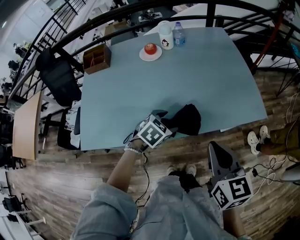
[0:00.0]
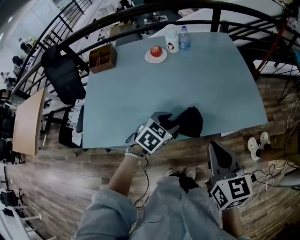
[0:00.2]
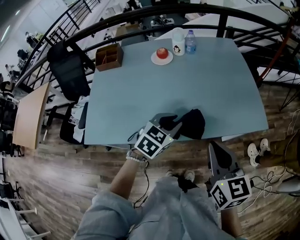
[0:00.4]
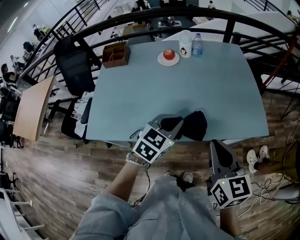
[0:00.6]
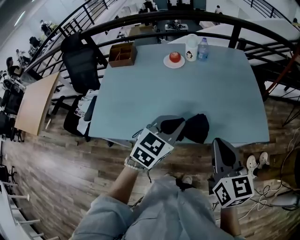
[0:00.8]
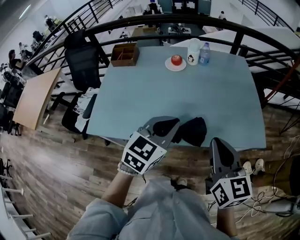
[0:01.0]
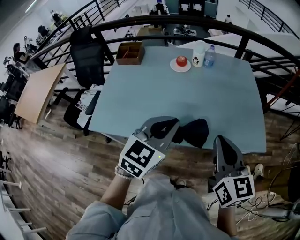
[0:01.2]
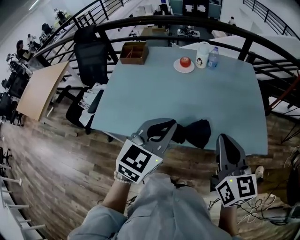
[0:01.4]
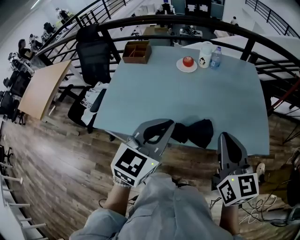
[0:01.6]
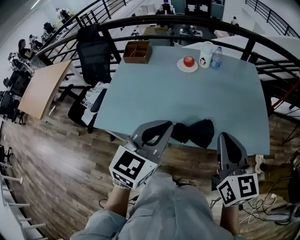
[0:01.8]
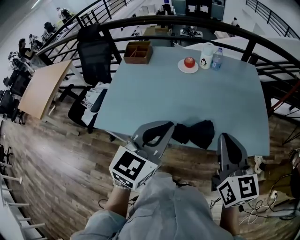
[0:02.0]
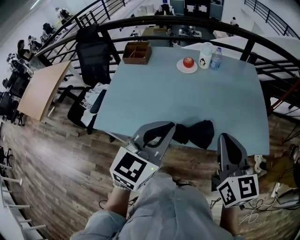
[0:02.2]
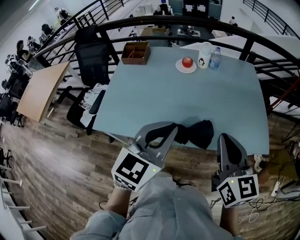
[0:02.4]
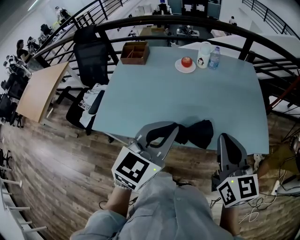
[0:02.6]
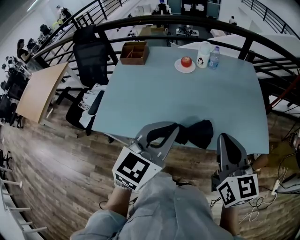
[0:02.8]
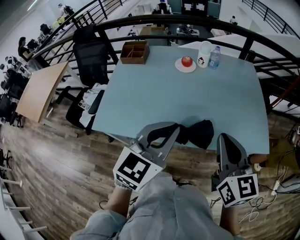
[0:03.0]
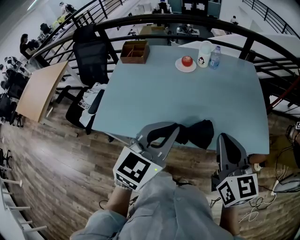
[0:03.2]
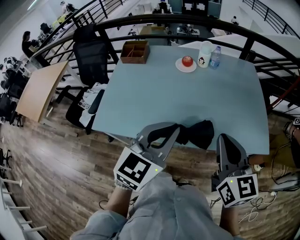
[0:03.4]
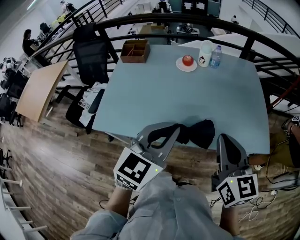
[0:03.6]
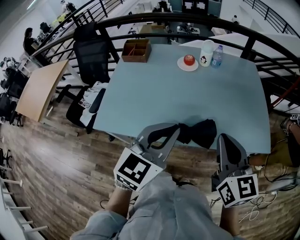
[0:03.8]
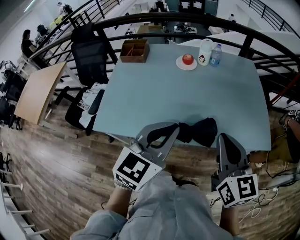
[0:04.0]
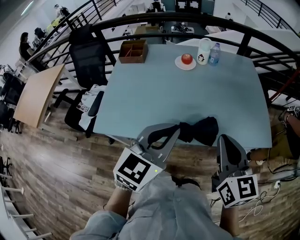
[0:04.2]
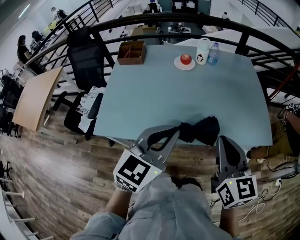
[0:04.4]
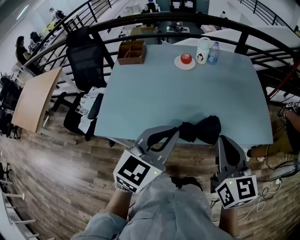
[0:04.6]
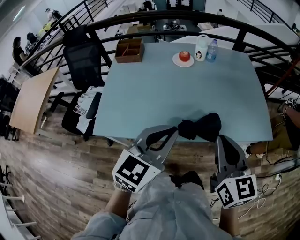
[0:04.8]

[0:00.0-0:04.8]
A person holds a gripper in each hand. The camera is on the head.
0:00.0 to 0:01.6: The left gripper travels upward by roughly 25 cm, angles its fingers upward, by about 40 degrees, and closes, while the right gripper shifts about 10 cm upward.
0:01.6 to 0:03.2: There are only small adjustments of the grippers.
0:03.2 to 0:04.8: Both grippers travel together to the left, some 5 cm.

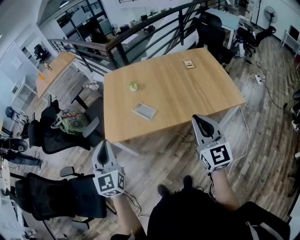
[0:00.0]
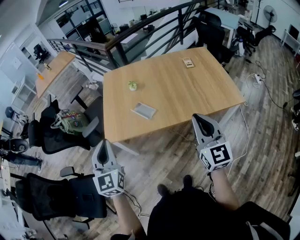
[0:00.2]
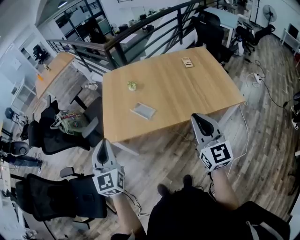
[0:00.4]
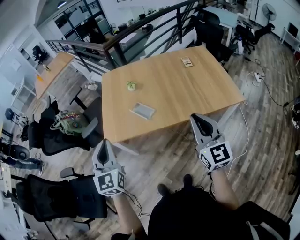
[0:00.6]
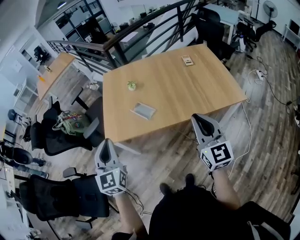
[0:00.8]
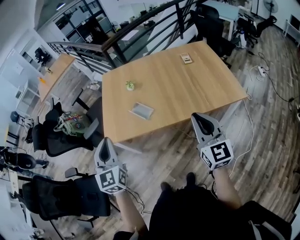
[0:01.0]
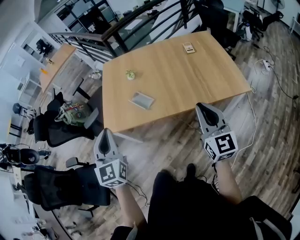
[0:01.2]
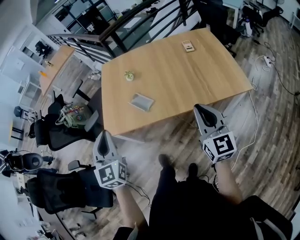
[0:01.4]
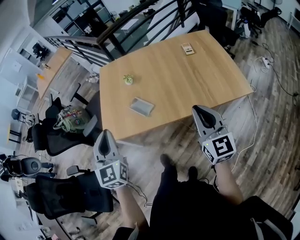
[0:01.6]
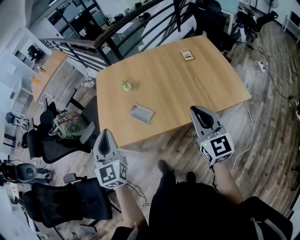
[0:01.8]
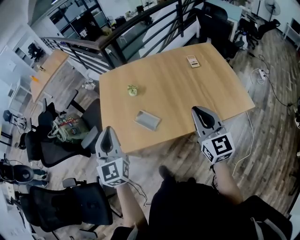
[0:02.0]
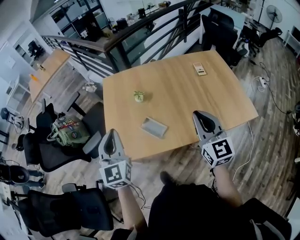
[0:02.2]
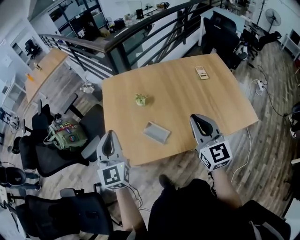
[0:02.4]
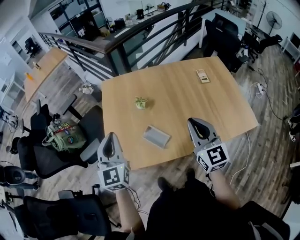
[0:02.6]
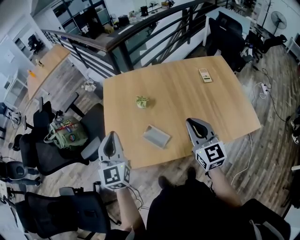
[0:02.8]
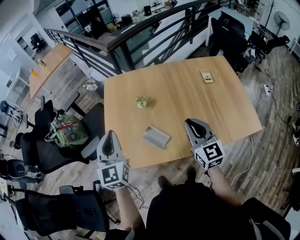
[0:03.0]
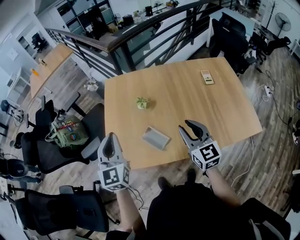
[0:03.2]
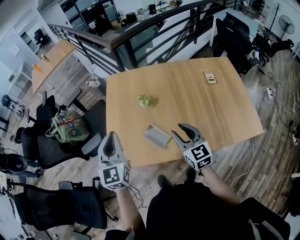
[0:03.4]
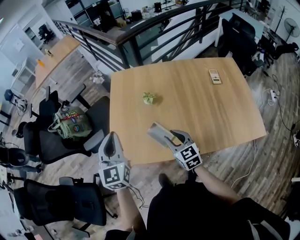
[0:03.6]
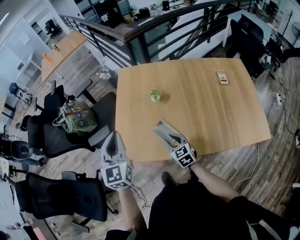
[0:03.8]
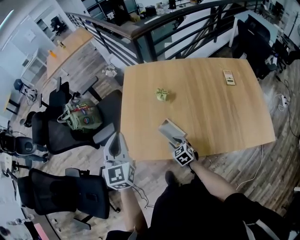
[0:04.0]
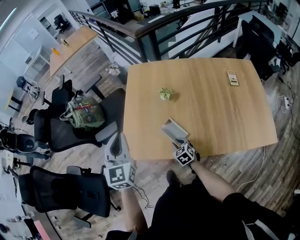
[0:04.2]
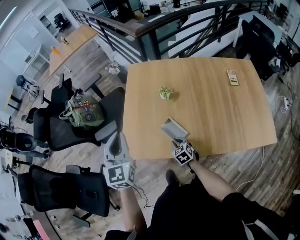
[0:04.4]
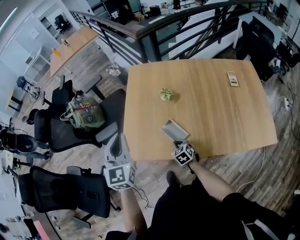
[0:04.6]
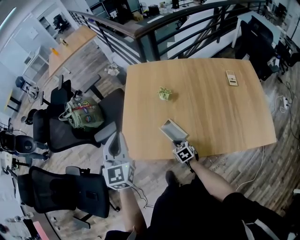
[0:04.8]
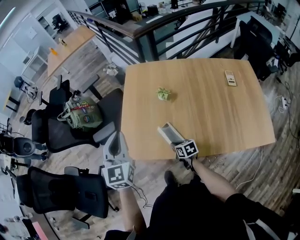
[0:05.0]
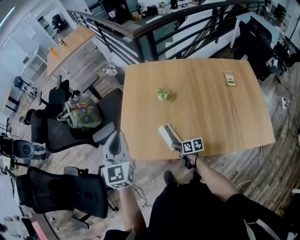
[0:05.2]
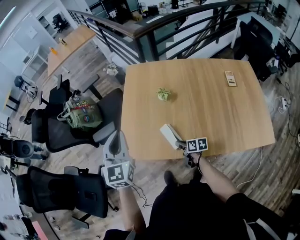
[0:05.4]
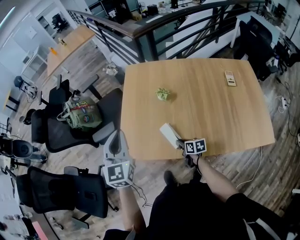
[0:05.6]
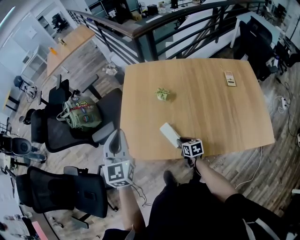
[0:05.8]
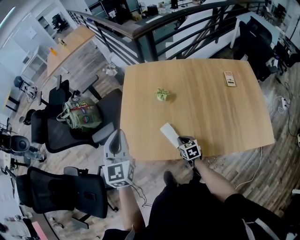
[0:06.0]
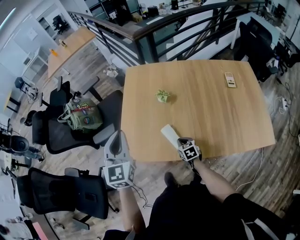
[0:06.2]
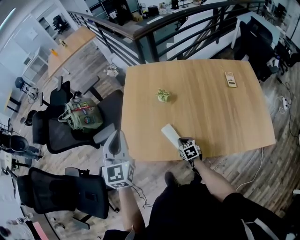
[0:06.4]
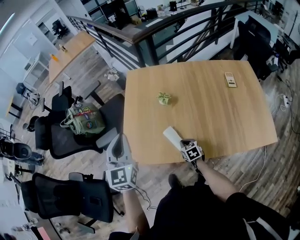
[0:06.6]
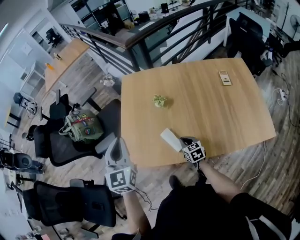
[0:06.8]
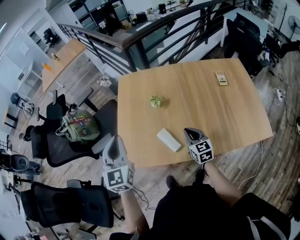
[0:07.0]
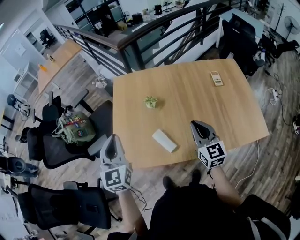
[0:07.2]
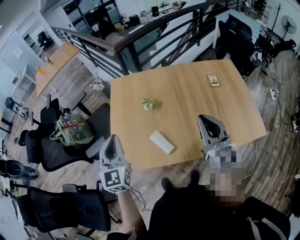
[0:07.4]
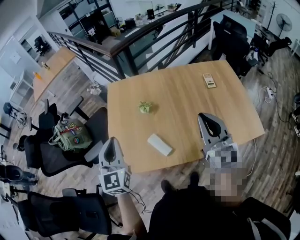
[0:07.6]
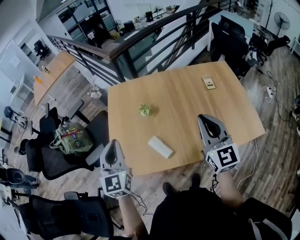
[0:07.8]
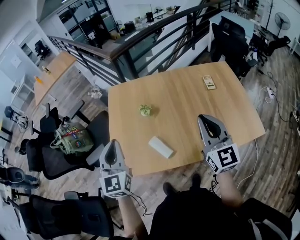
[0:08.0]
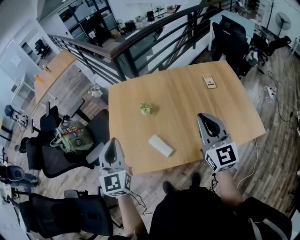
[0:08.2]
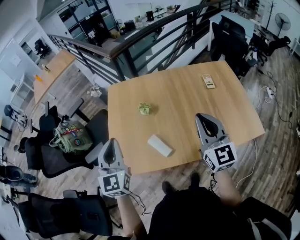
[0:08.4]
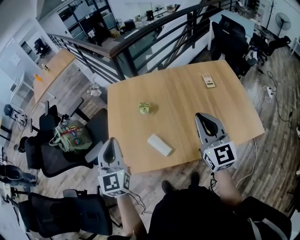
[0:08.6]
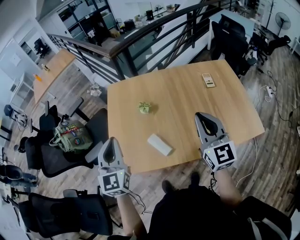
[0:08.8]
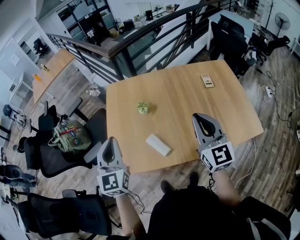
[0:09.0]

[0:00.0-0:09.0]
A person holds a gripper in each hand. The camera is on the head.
0:00.0 to 0:01.6: Both grippers move to the right and forward, roughly 10 cm.
0:01.6 to 0:03.0: The left gripper shifts approximately 20 cm forward; the right gripper is displaced forward and to the left by roughly 25 cm.
0:03.0 to 0:04.4: The left gripper travels to the left by roughly 5 cm. The right gripper shifts approximately 35 cm downward and to the left, tilts its fingers roughly 40 degrees downward, and opens, then closes once more.
0:04.4 to 0:06.0: The right gripper travels to the right by about 5 cm.
0:06.0 to 0:07.6: The right gripper heads upward, covering some 40 cm, and tips its fingers upward by about 40 degrees. Meanwhile the left gripper changes place by roughly 5 cm.
0:07.6 to 0:09.0: The grippers move only a little.

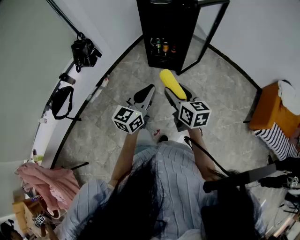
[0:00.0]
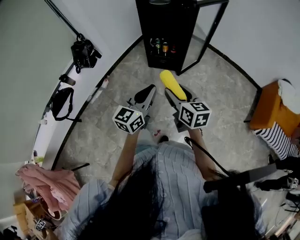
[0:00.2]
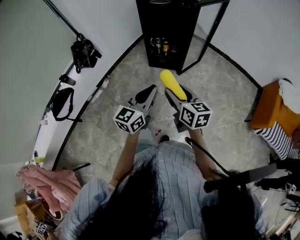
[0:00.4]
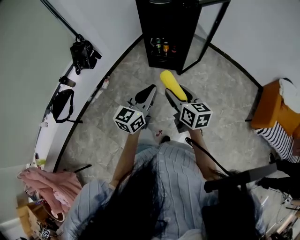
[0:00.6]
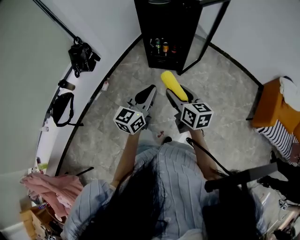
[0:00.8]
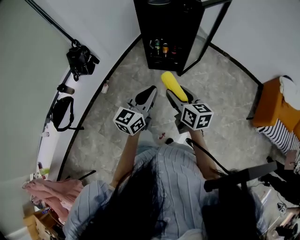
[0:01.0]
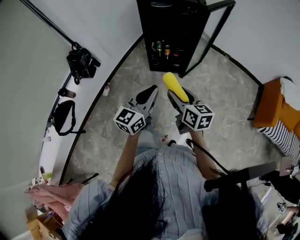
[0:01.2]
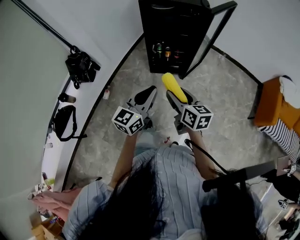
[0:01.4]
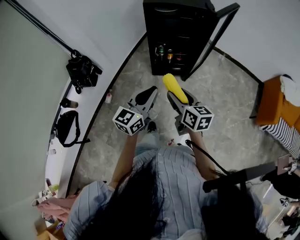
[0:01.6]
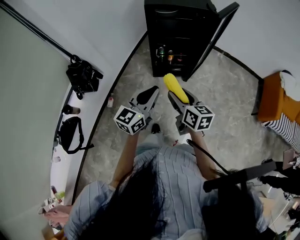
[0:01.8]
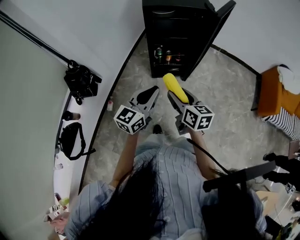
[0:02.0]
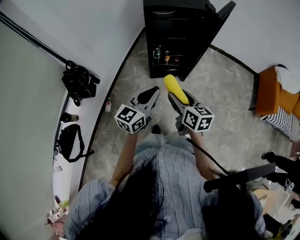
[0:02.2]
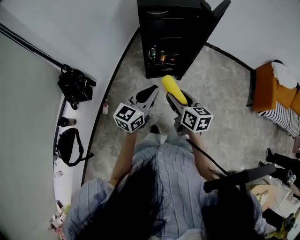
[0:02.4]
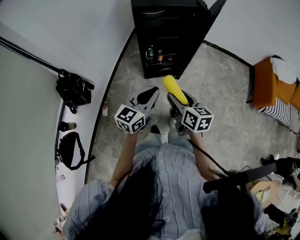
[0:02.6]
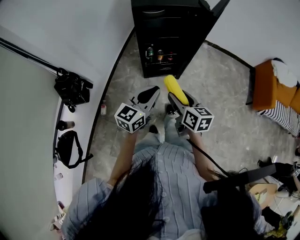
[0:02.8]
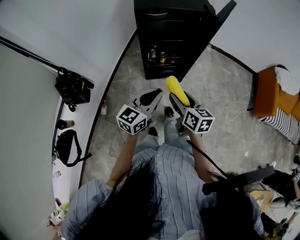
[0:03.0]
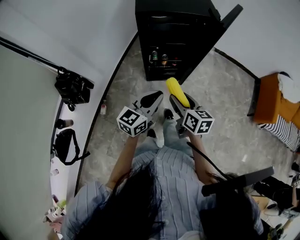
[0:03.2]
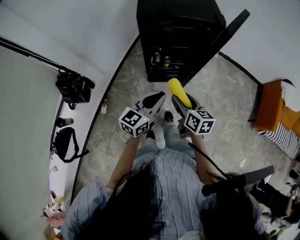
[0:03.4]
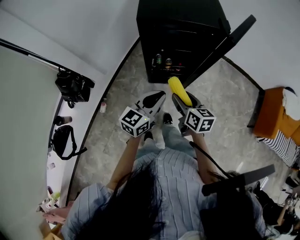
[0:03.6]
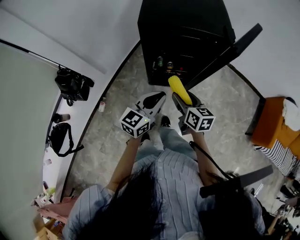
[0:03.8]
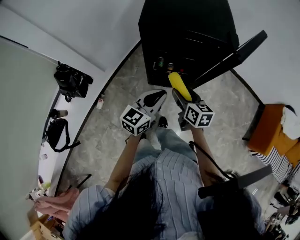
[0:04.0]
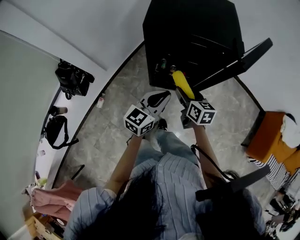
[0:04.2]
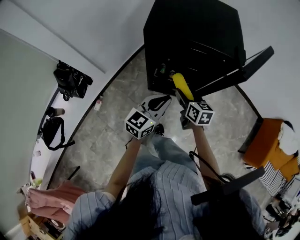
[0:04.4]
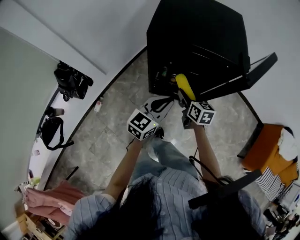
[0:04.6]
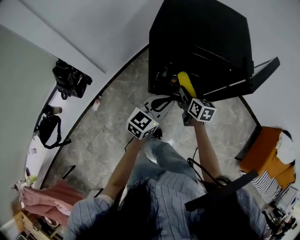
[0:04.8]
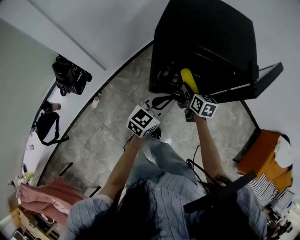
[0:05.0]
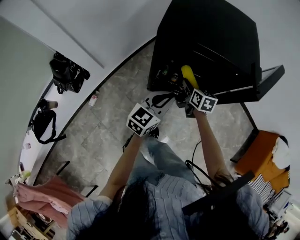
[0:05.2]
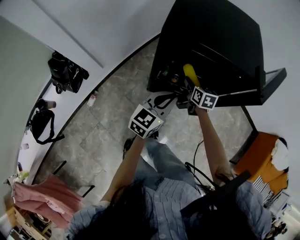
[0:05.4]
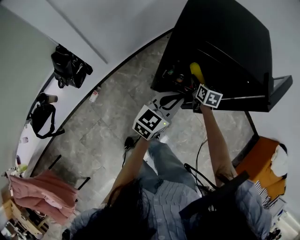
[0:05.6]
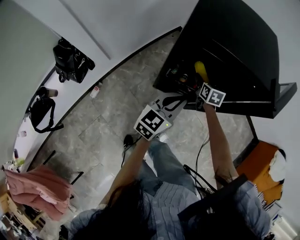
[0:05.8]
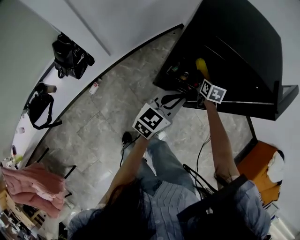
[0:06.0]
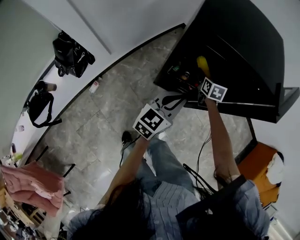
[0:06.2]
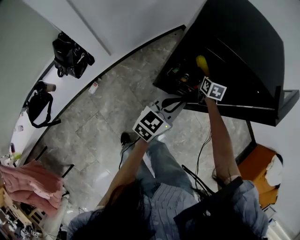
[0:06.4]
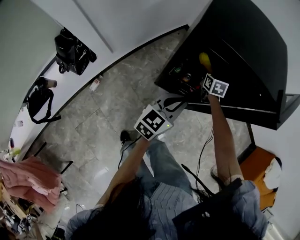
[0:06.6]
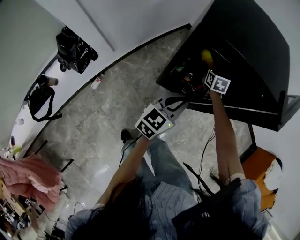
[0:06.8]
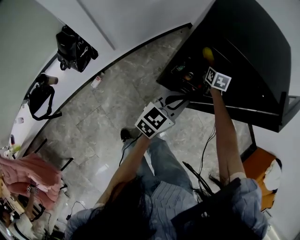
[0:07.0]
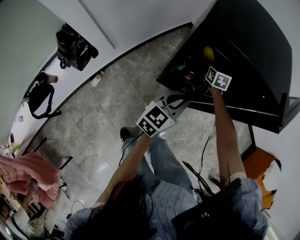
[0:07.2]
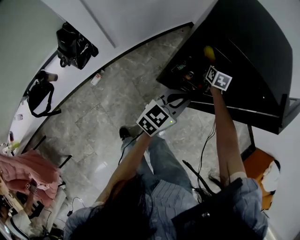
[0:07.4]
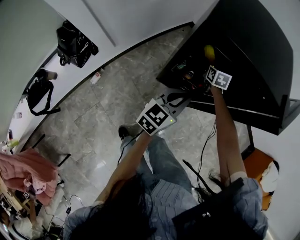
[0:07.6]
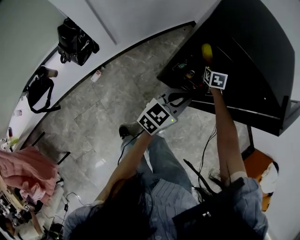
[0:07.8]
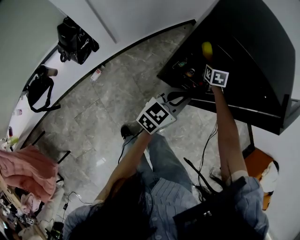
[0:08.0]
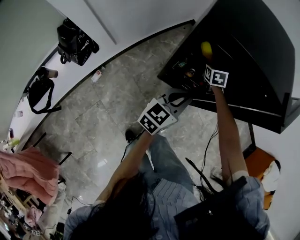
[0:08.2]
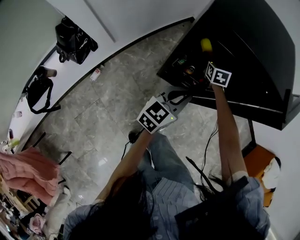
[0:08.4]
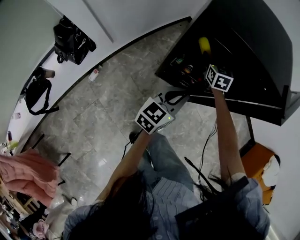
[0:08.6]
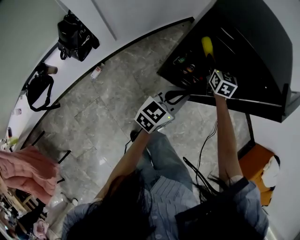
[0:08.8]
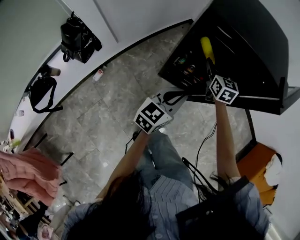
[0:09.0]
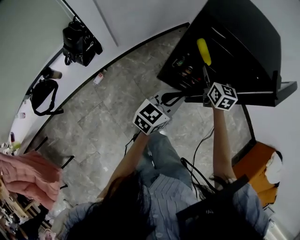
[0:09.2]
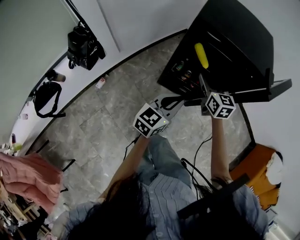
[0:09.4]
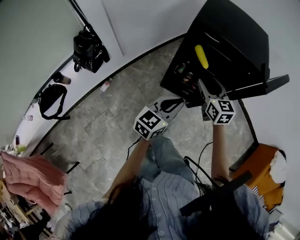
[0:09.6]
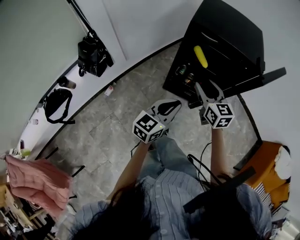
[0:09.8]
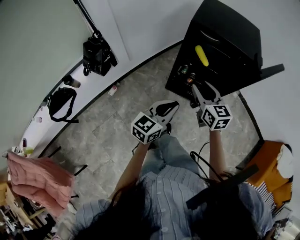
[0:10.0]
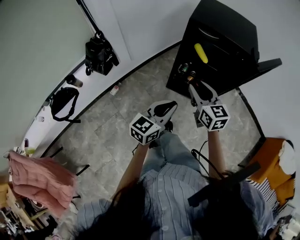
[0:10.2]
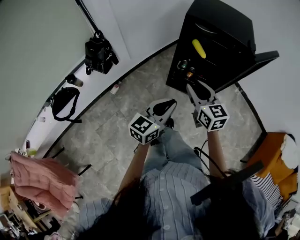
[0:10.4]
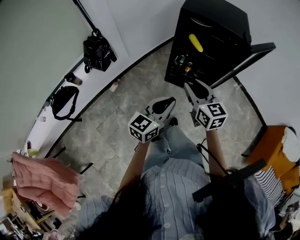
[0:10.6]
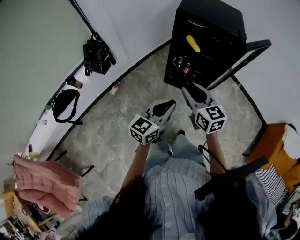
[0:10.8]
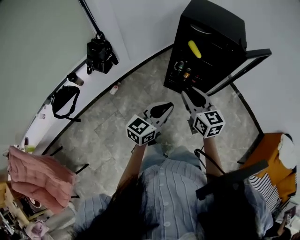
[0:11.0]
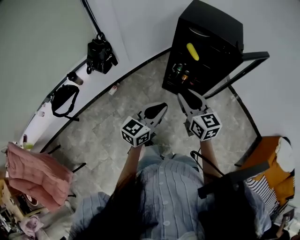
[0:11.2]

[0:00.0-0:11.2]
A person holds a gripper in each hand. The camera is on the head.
0:00.0 to 0:01.6: The grippers both shift forward and to the left by about 20 cm.
0:01.6 to 0:03.2: The grippers both shift forward by some 15 cm.
0:03.2 to 0:04.8: The left gripper moves forward, about 20 cm. The right gripper goes roughly 30 cm forward.
0:04.8 to 0:06.4: The left gripper is displaced downward by roughly 5 cm; the right gripper travels forward and downward by about 20 cm.
0:06.4 to 0:08.0: The right gripper shifts by roughly 5 cm.
0:08.0 to 0:09.6: The right gripper is displaced backward and upward by some 35 cm, and turns by approximately 20 degrees, while the left gripper is displaced backward and upward by roughly 15 cm.
0:09.6 to 0:11.2: Both grippers move backward, approximately 25 cm. The right gripper closes its fingers.
